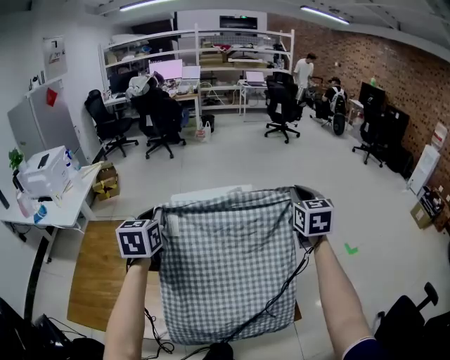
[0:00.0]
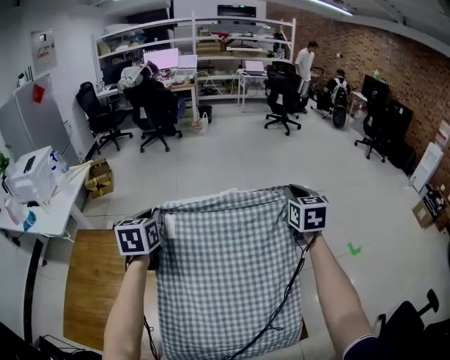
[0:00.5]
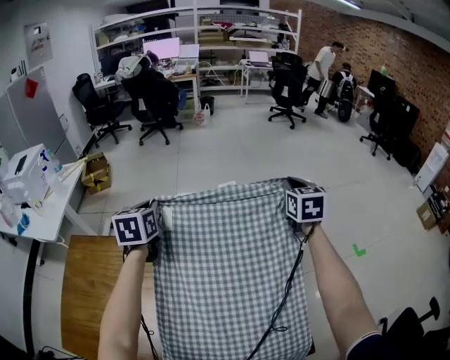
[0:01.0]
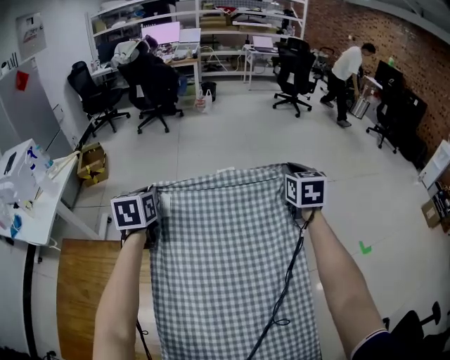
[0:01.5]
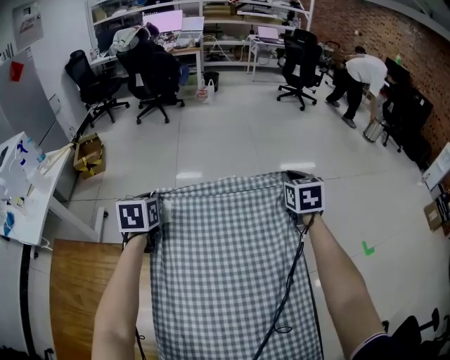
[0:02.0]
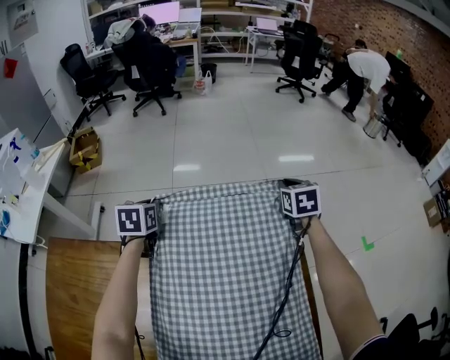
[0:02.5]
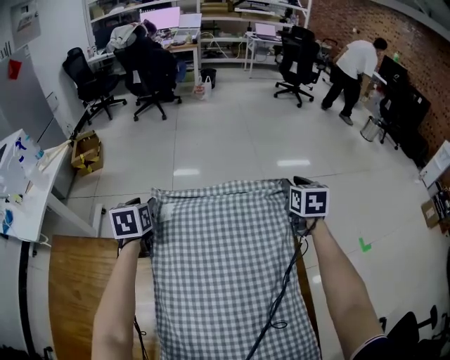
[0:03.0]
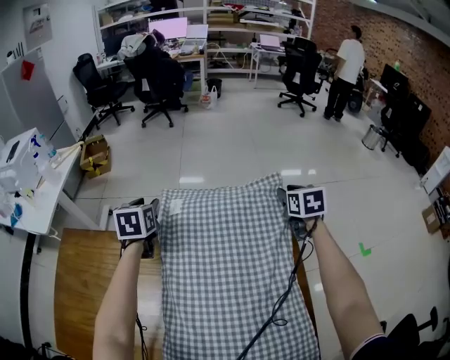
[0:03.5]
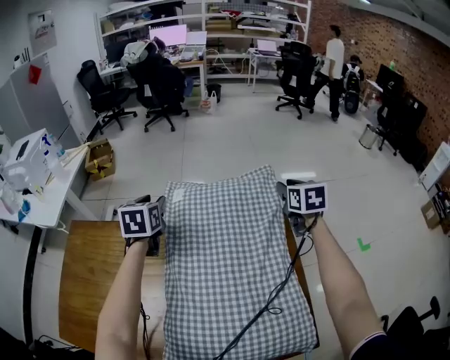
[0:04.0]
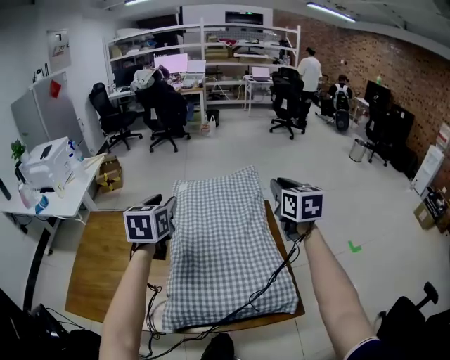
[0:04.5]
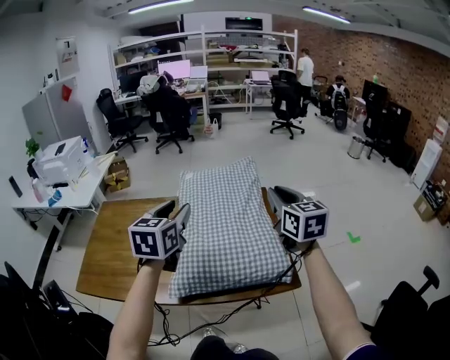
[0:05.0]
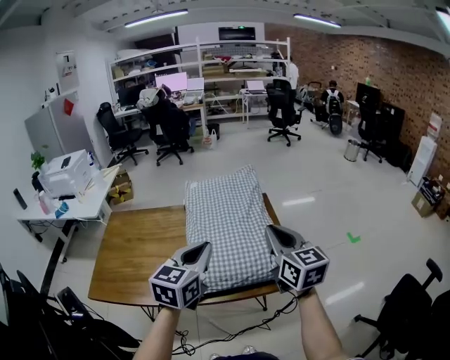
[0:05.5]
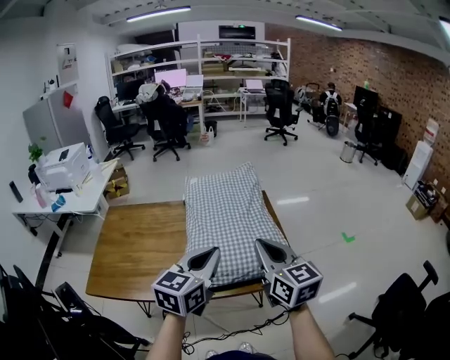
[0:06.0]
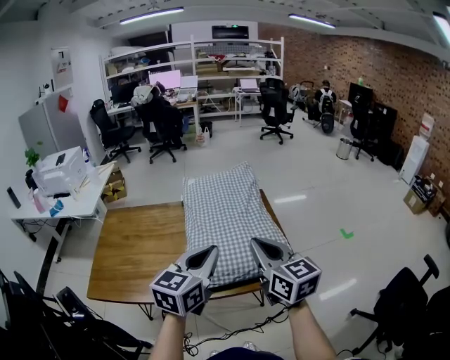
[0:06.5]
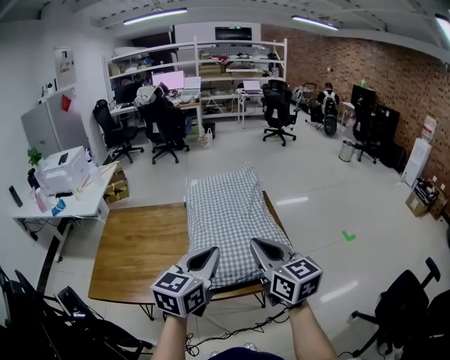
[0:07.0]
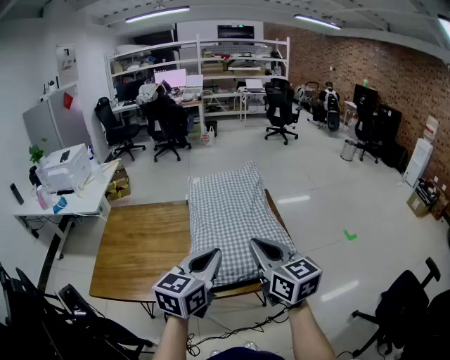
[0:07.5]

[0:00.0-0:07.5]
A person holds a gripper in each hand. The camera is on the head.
0:00.0 to 0:02.0: The two grippers go roughly 35 cm forward and downward.
0:02.0 to 0:04.0: The left gripper travels backward and upward by approximately 15 cm, and opens its fingers, while the right gripper travels backward by roughly 15 cm, and opens its fingers.
0:04.0 to 0:05.5: The two grippers travel together, backward, some 50 cm. The right gripper changes its angle by approximately 30 degrees, and closes. The left gripper changes its angle by some 30 degrees, and closes up.
0:05.5 to 0:07.5: The right gripper goes approximately 10 cm to the left and backward.

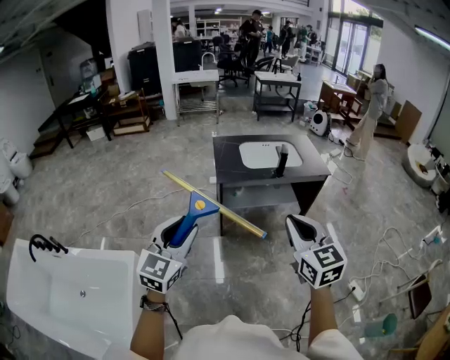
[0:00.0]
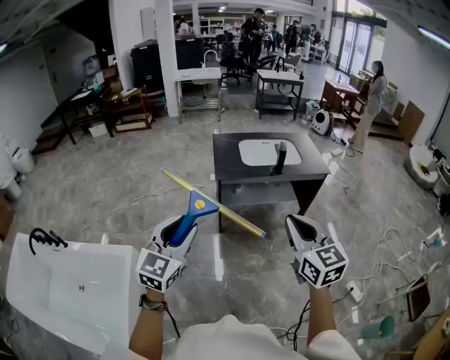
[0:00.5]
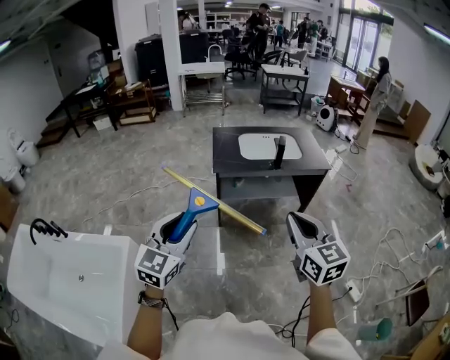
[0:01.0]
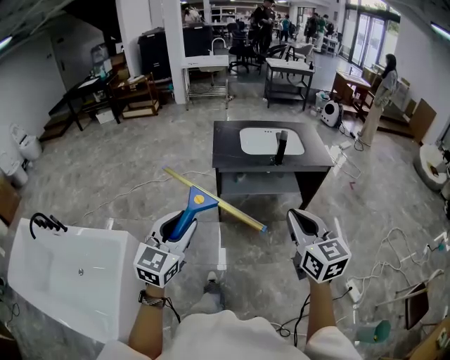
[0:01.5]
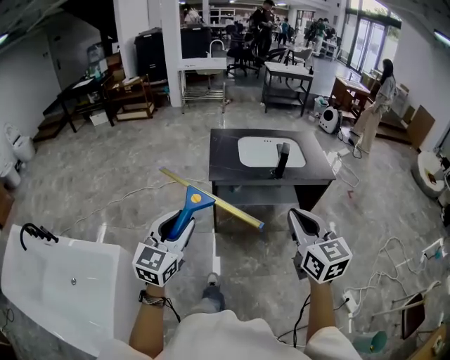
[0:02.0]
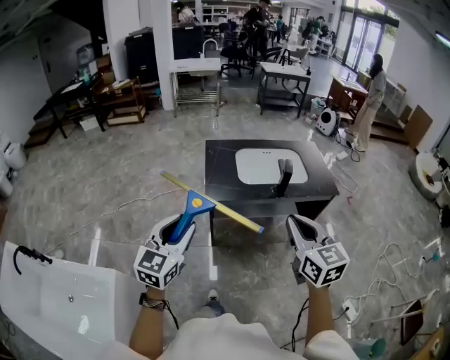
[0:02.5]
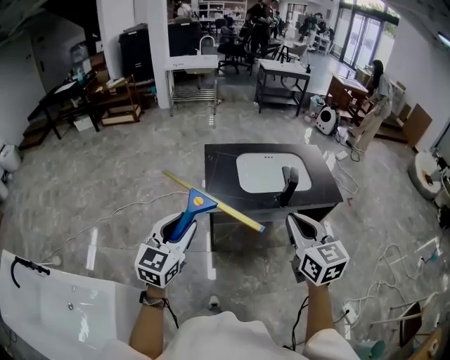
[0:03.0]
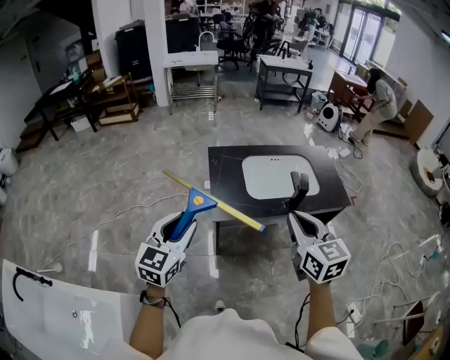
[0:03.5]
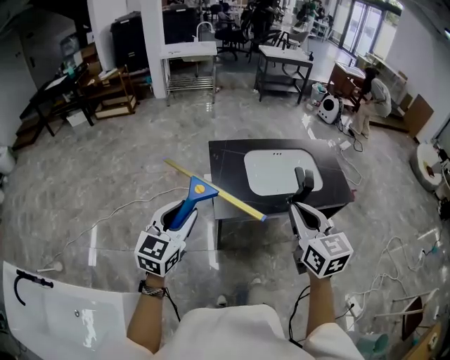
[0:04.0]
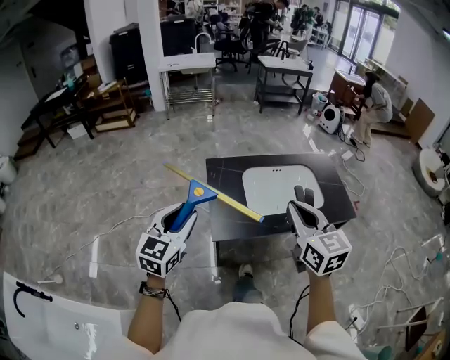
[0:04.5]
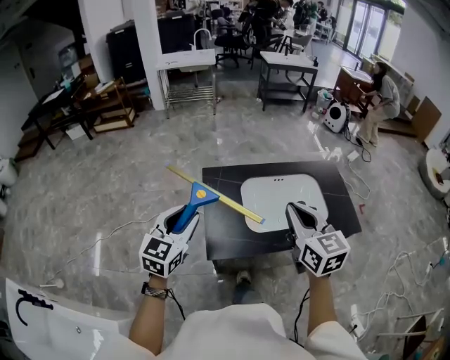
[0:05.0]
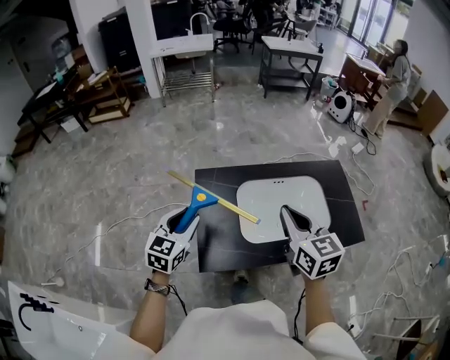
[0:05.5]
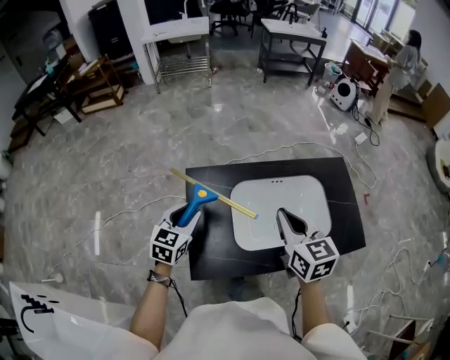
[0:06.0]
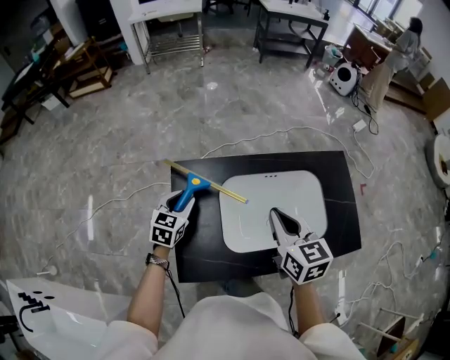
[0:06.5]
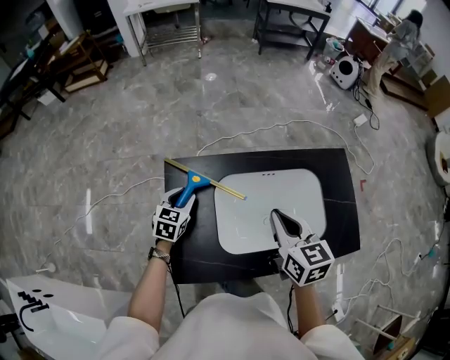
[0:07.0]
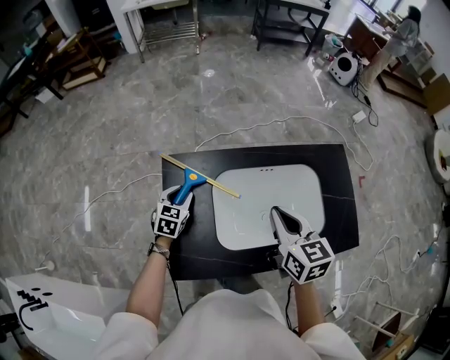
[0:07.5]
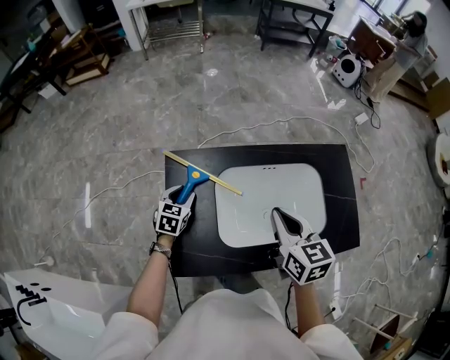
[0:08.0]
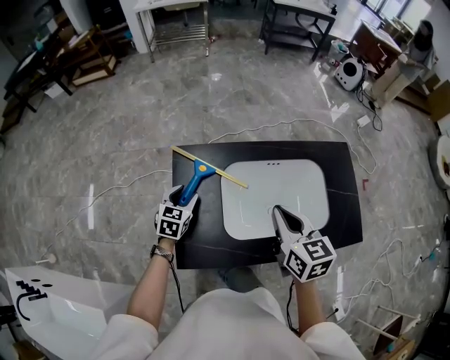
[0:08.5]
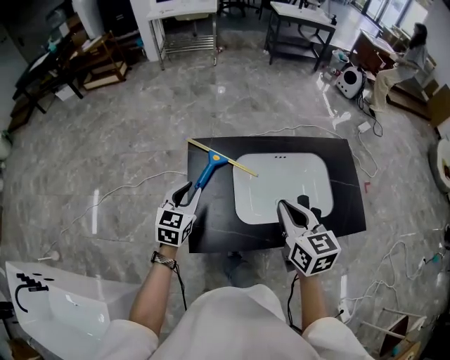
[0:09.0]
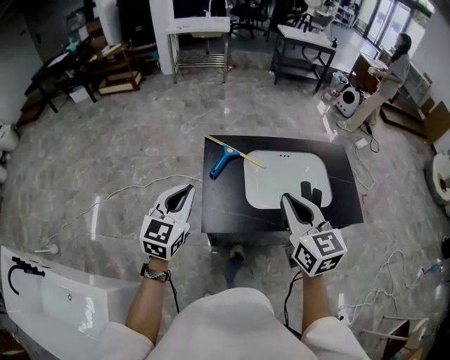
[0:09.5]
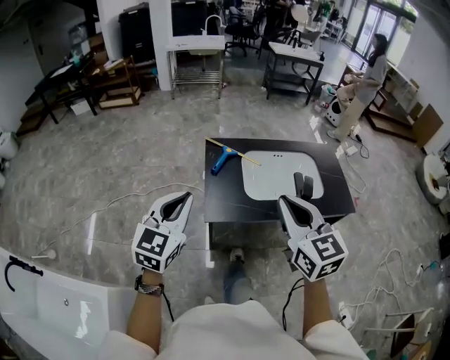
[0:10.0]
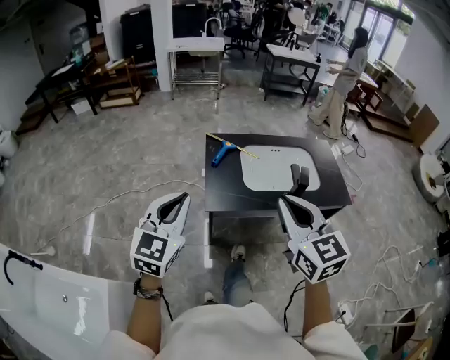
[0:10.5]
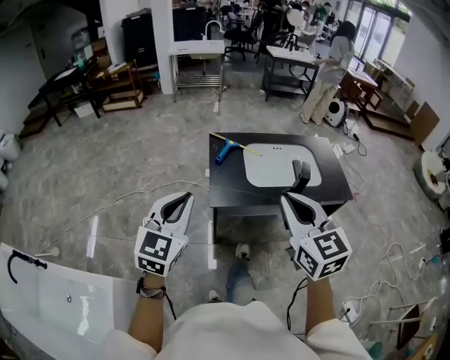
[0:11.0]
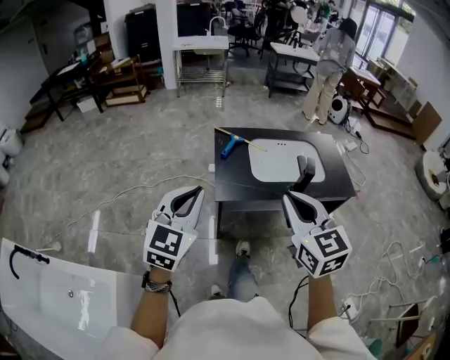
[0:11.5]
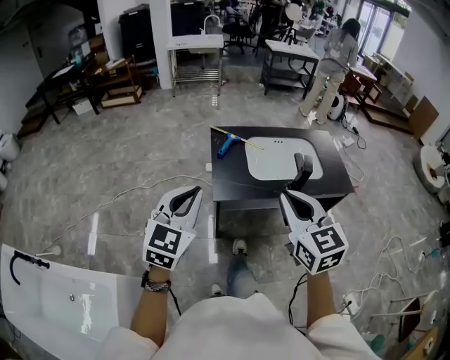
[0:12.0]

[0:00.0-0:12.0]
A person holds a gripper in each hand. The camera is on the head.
0:00.0 to 0:02.0: Both grippers travel together forward and to the right, roughly 10 cm.
0:02.0 to 0:04.0: The grippers both shift forward by about 35 cm.
0:04.0 to 0:06.0: The right gripper is displaced forward by about 35 cm. Meanwhile the left gripper is displaced forward and downward by some 40 cm.
0:06.0 to 0:08.0: The left gripper travels downward and forward by approximately 20 cm, while the right gripper goes some 5 cm downward.
0:08.0 to 0:10.0: The grippers both shift backward and upward by roughly 50 cm. The left gripper angles its fingers upward, by roughly 30 degrees, and closes up. The right gripper turns by approximately 30 degrees.
0:10.0 to 0:12.0: The grippers both shift backward by some 10 cm.

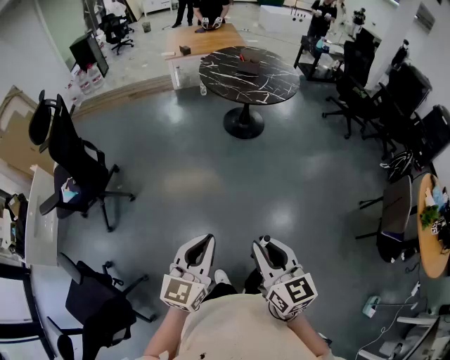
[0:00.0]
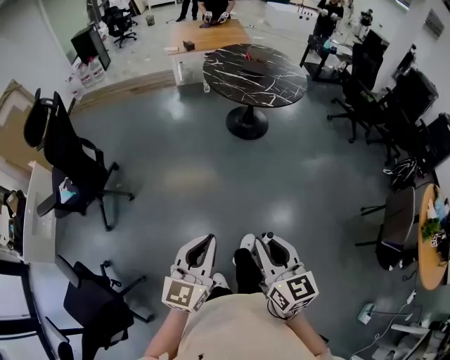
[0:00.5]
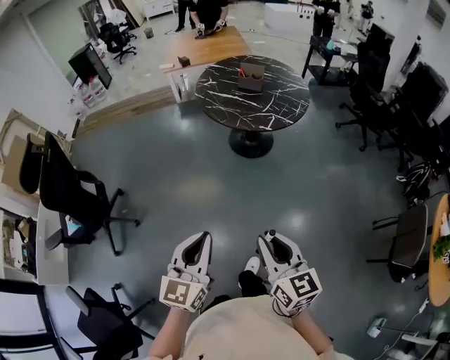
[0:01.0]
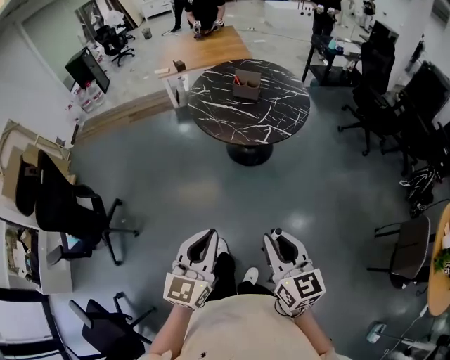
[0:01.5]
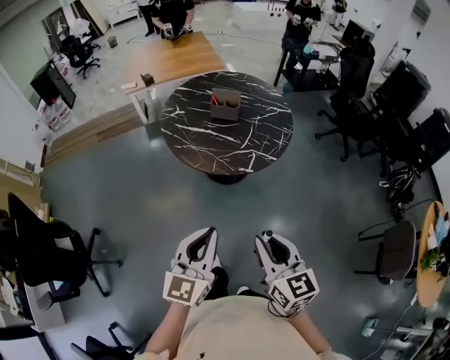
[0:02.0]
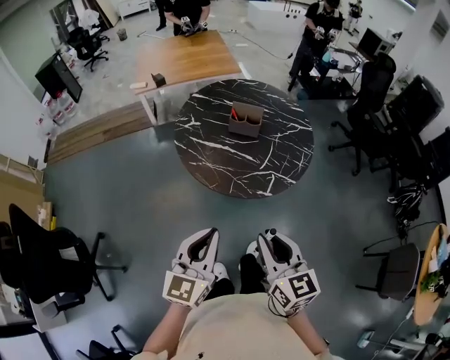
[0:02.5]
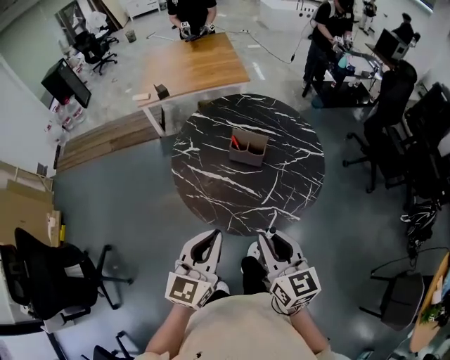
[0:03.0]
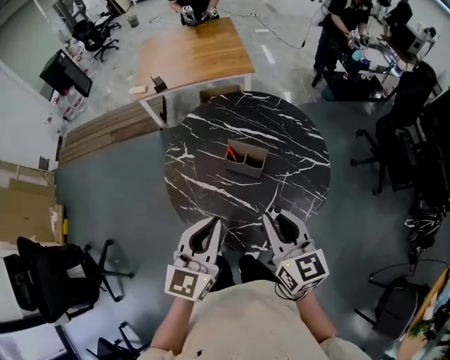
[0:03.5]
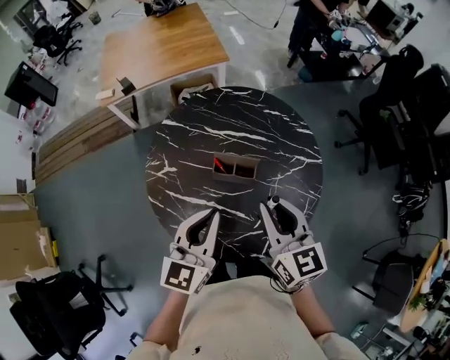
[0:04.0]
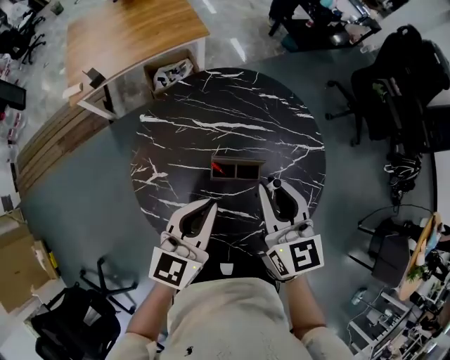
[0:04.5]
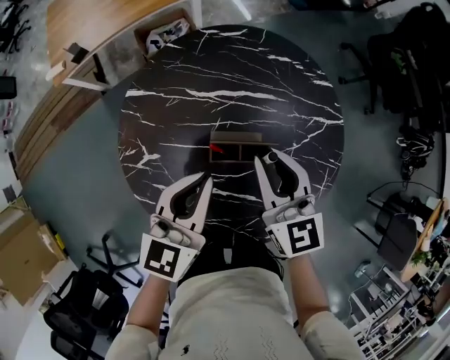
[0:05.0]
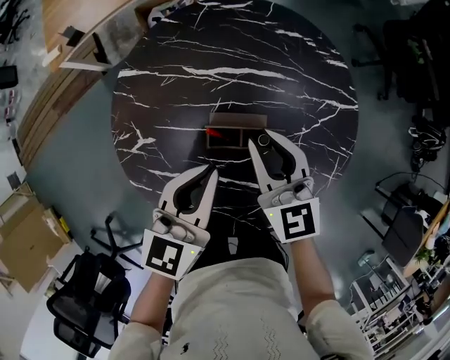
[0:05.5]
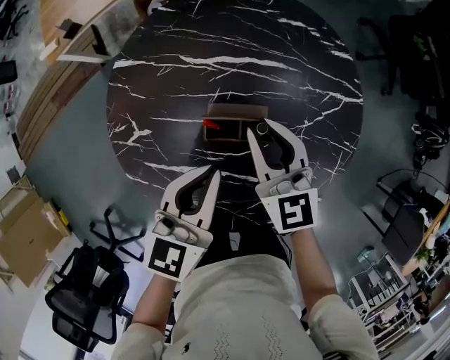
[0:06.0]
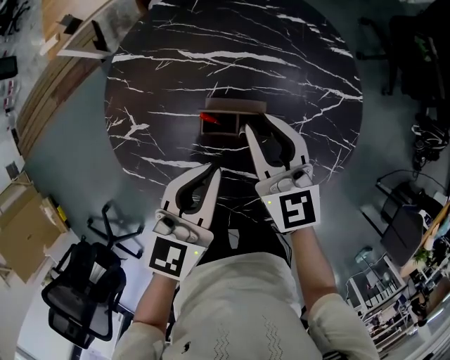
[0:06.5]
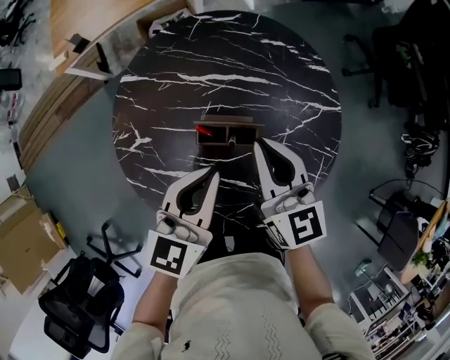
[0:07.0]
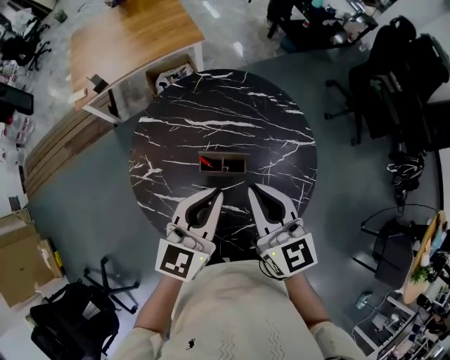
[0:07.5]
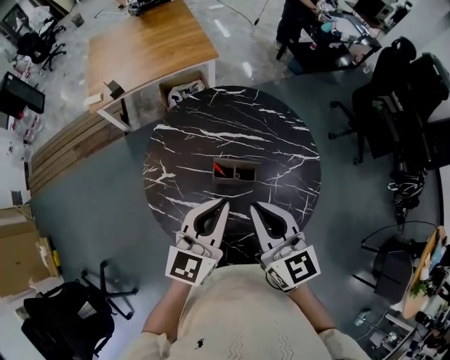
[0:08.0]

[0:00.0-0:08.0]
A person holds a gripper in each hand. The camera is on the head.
0:00.0 to 0:02.0: The two grippers travel together, forward, roughly 60 cm.
0:02.0 to 0:04.0: The two grippers travel together, forward, roughly 60 cm.
0:04.0 to 0:06.0: The grippers both shift downward and forward by approximately 20 cm.
0:06.0 to 0:08.0: The left gripper moves upward, roughly 15 cm. The right gripper shifts about 25 cm upward and backward.
